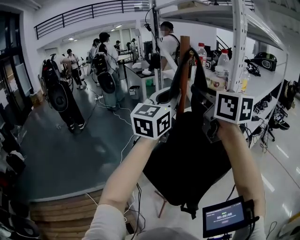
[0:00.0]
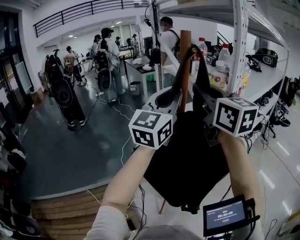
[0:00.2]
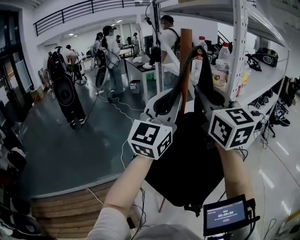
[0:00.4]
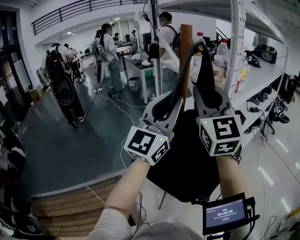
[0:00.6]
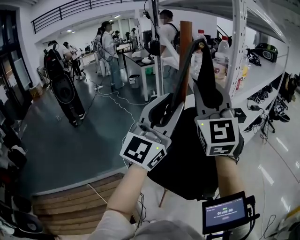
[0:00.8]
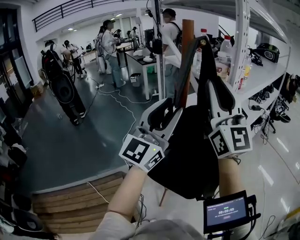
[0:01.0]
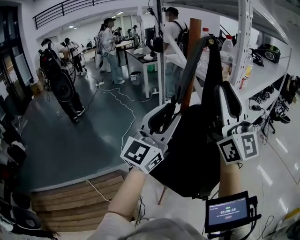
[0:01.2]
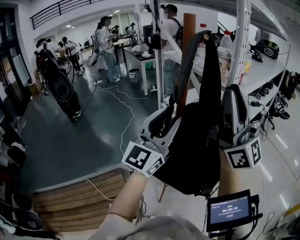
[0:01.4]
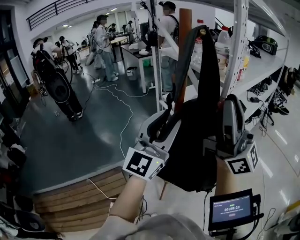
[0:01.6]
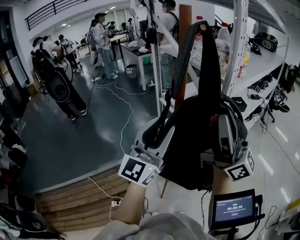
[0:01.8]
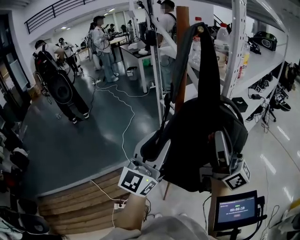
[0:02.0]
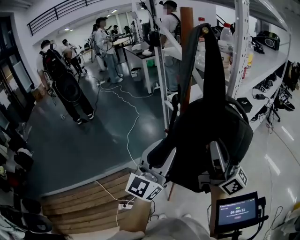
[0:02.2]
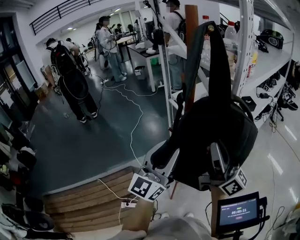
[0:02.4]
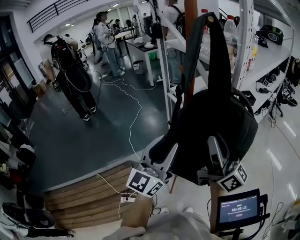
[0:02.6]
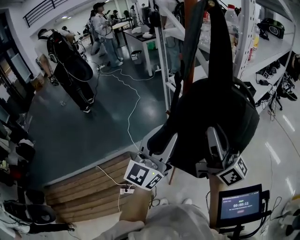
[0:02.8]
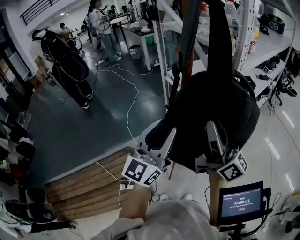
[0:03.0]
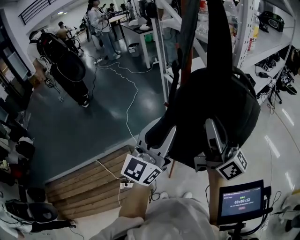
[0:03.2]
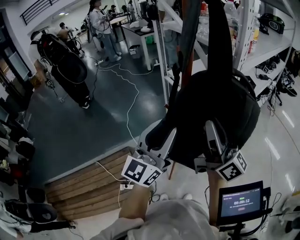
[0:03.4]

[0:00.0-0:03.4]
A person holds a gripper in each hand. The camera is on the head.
0.0 to 1.6 s: The right gripper shifts about 20 cm backward and to the right, and angles its fingers upward, by roughly 50 degrees; the left gripper shifts about 15 cm backward and downward, and opens its fingers.
1.6 to 3.4 s: The left gripper goes some 10 cm downward. The right gripper heads downward, covering roughly 15 cm, and changes its angle by approximately 30 degrees.

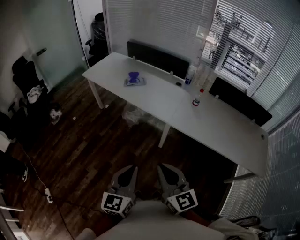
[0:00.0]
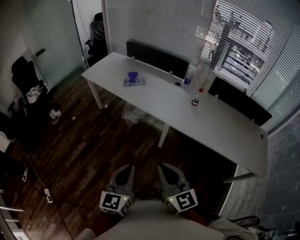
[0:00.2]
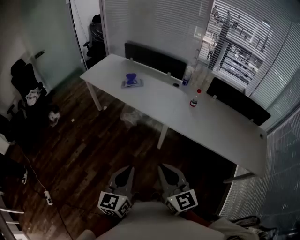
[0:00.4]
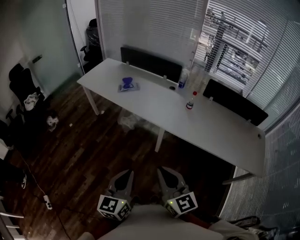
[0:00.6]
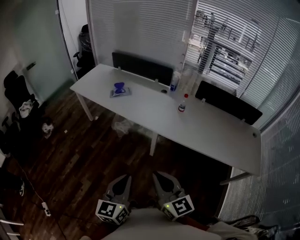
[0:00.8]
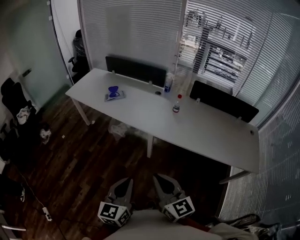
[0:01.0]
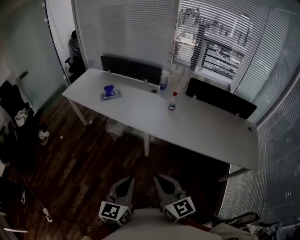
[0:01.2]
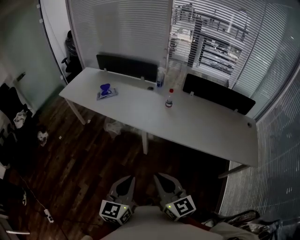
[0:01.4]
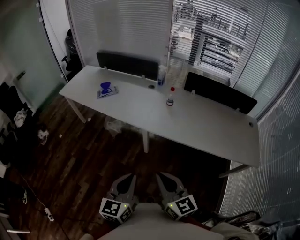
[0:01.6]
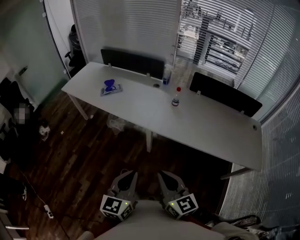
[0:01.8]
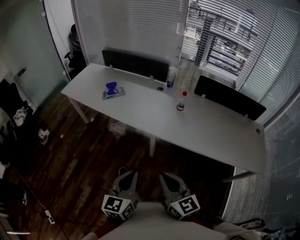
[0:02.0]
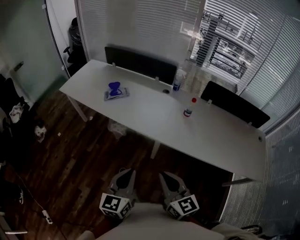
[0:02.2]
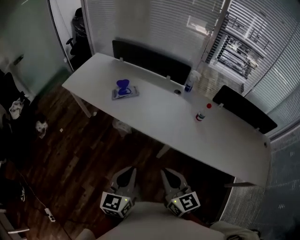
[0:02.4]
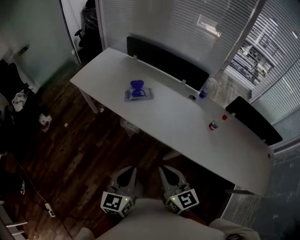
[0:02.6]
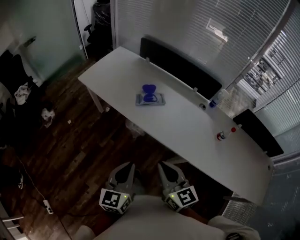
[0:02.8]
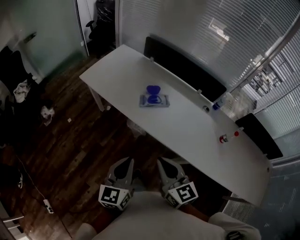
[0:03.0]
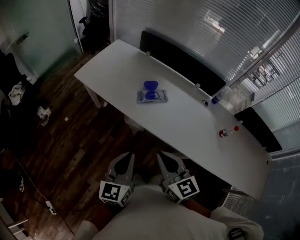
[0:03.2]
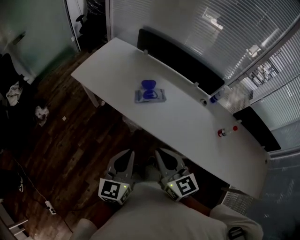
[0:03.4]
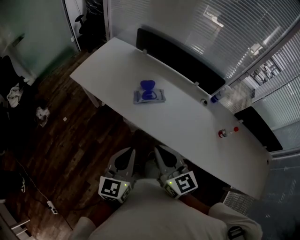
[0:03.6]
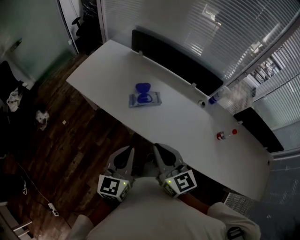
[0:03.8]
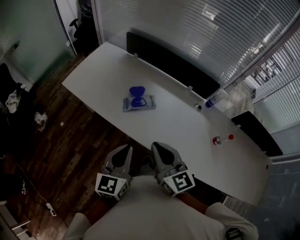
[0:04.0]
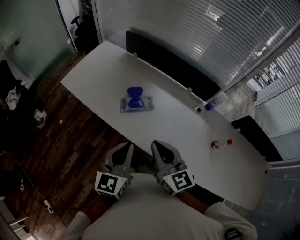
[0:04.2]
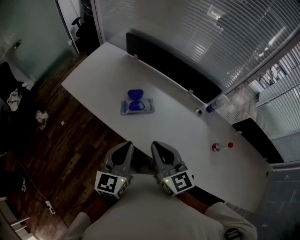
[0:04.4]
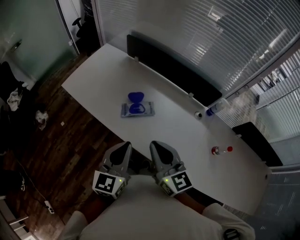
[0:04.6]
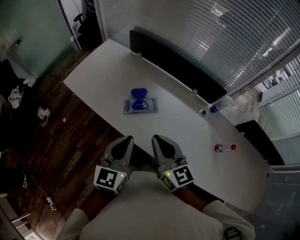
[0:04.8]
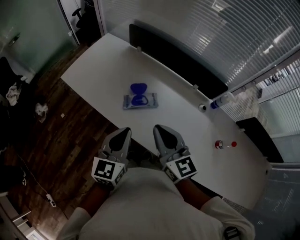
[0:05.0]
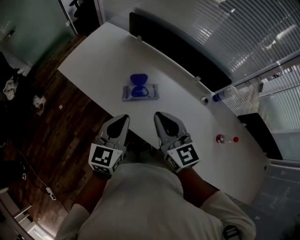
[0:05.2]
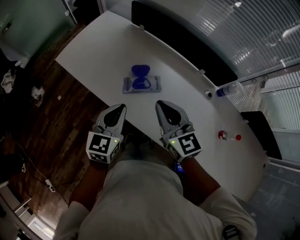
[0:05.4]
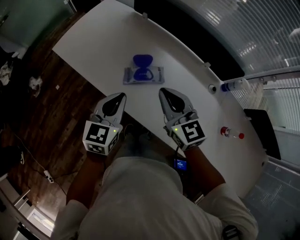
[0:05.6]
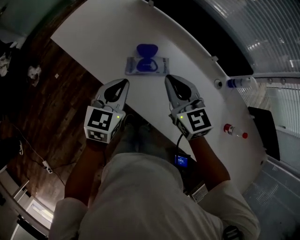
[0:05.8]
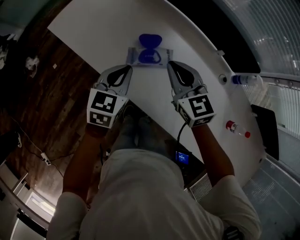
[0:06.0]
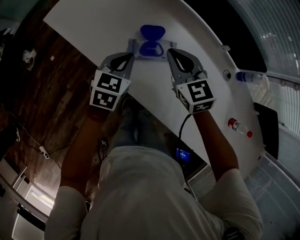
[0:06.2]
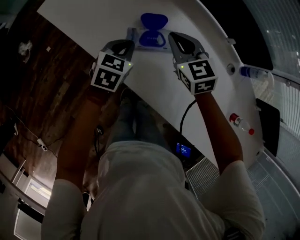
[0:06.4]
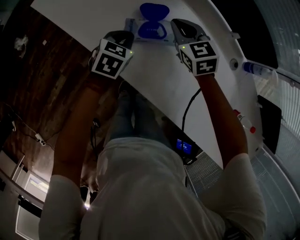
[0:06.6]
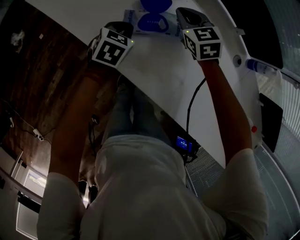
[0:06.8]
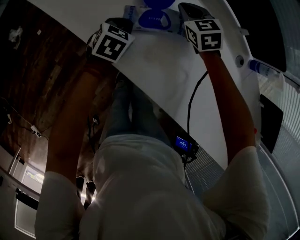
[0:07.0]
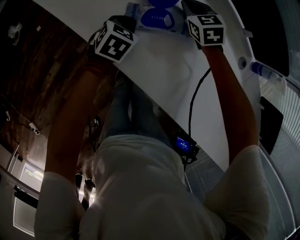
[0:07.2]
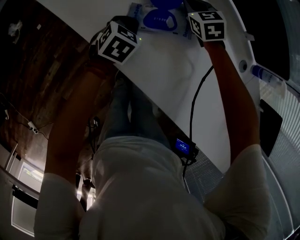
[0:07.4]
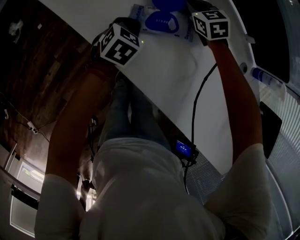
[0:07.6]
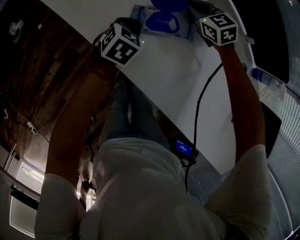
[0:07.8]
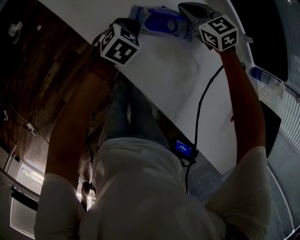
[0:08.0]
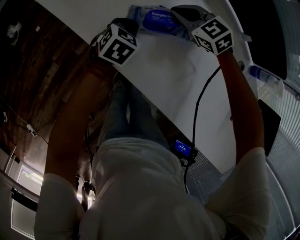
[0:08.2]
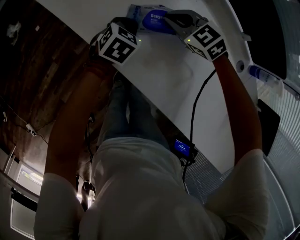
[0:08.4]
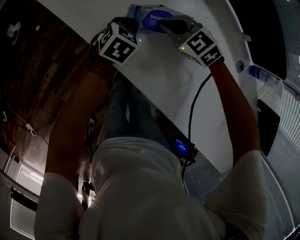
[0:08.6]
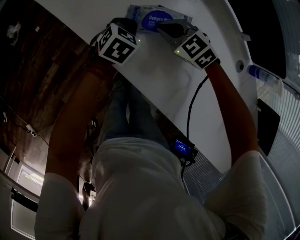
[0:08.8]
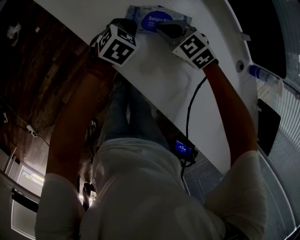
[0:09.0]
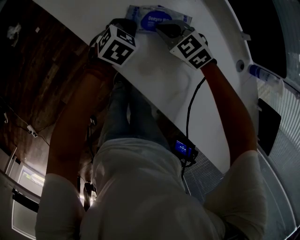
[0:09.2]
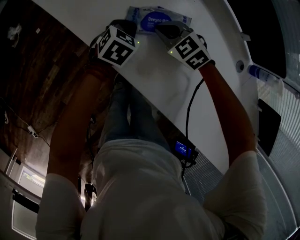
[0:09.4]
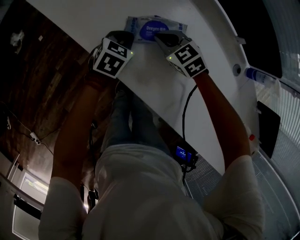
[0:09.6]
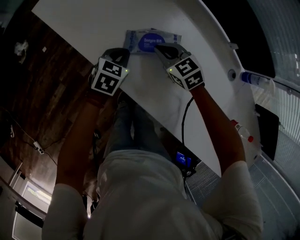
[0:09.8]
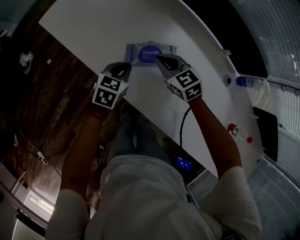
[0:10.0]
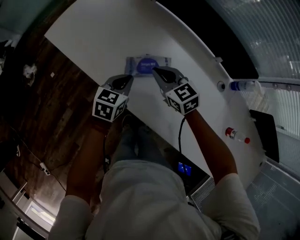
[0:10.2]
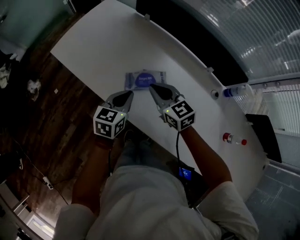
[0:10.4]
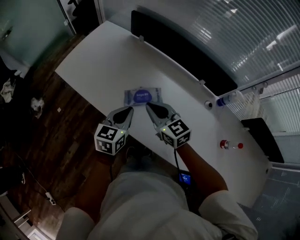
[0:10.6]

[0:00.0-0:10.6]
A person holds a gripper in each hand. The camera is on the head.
0.0 to 1.6 s: The grippers both shift to the right by about 15 cm.
1.6 to 3.0 s: The two grippers travel together, forward and to the left, approximately 50 cm.
3.0 to 4.6 s: The two grippers go roughly 20 cm forward and to the right.
4.6 to 6.0 s: The two grippers go about 25 cm forward and downward. The right gripper turns by about 20 degrees. Meanwhile the left gripper swivels approximately 20 degrees.
6.0 to 7.6 s: The right gripper shifts about 30 cm downward and forward, and rotates about 20 degrees, while the left gripper shifts about 20 cm downward, and swivels approximately 20 degrees.
7.6 to 9.0 s: The right gripper is displaced backward and to the left by approximately 15 cm, and rotates some 30 degrees.
9.0 to 10.6 s: Both grippers move upward, roughly 25 cm. The left gripper rotates some 30 degrees; the right gripper swivels approximately 40 degrees.

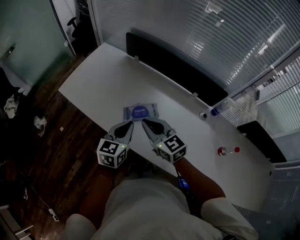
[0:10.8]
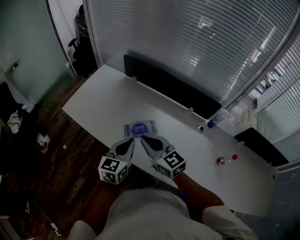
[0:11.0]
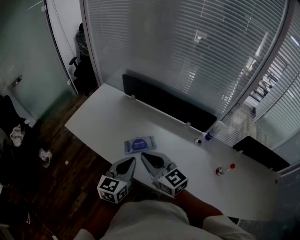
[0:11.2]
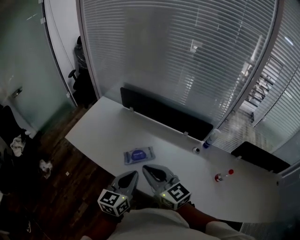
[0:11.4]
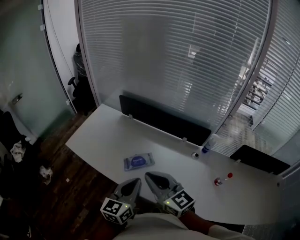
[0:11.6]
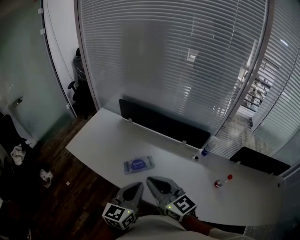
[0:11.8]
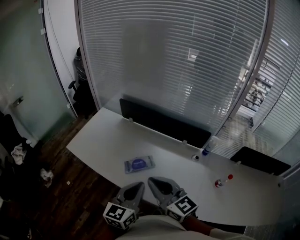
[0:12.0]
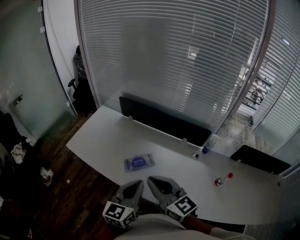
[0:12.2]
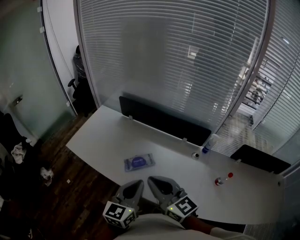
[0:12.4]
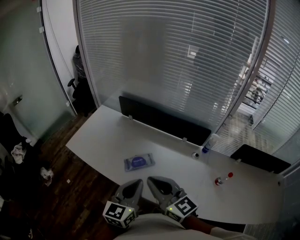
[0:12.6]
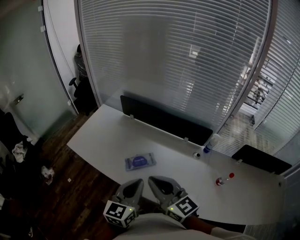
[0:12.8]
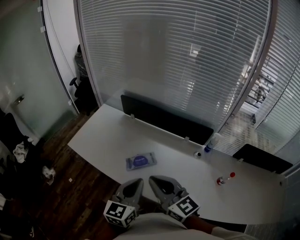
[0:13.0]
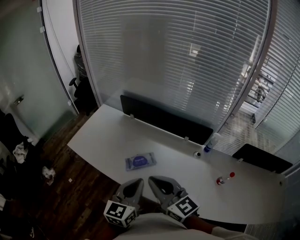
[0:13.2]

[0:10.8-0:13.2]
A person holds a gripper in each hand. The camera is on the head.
10.8 to 12.0 s: The right gripper moves upward and backward, some 20 cm. Meanwhile the left gripper goes some 15 cm upward, backward and to the right.
12.0 to 13.2 s: Both grippers stay about where they are.

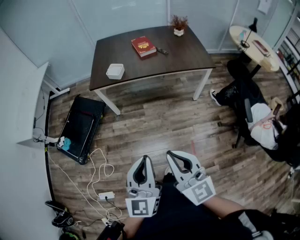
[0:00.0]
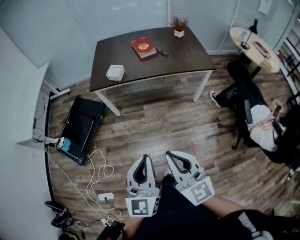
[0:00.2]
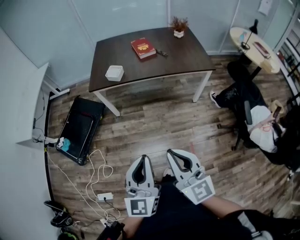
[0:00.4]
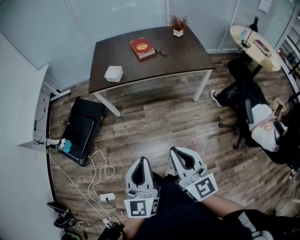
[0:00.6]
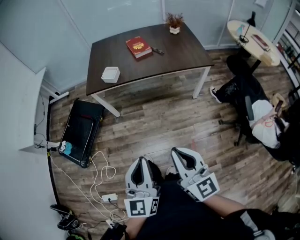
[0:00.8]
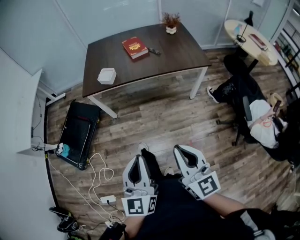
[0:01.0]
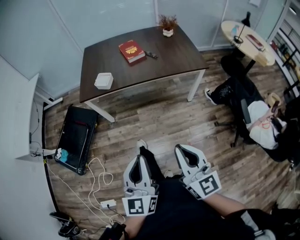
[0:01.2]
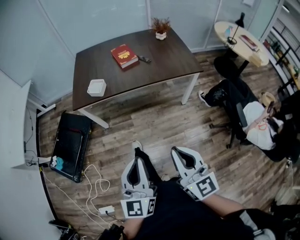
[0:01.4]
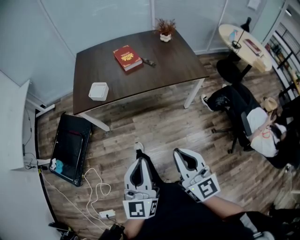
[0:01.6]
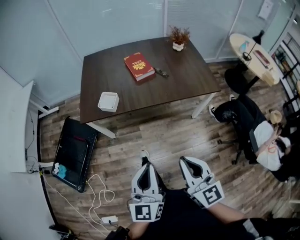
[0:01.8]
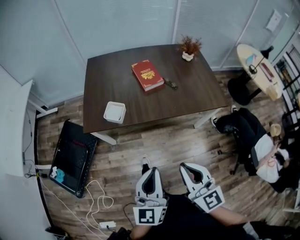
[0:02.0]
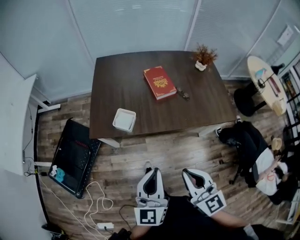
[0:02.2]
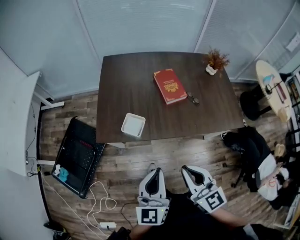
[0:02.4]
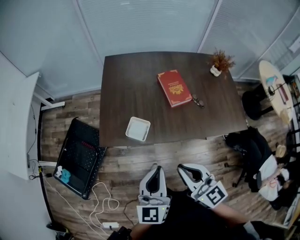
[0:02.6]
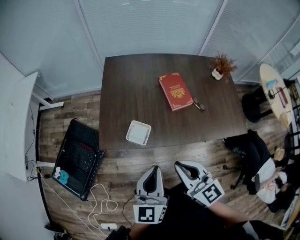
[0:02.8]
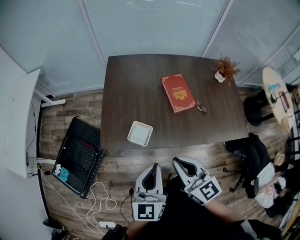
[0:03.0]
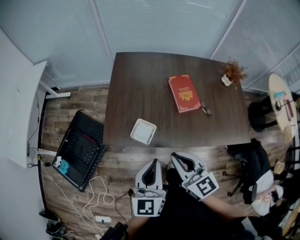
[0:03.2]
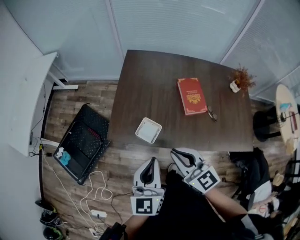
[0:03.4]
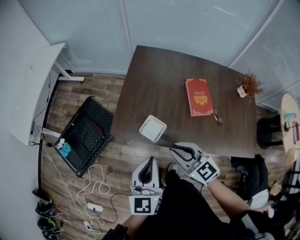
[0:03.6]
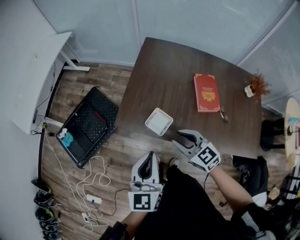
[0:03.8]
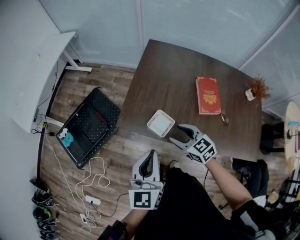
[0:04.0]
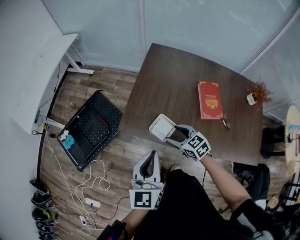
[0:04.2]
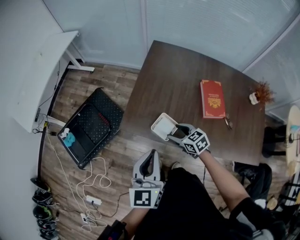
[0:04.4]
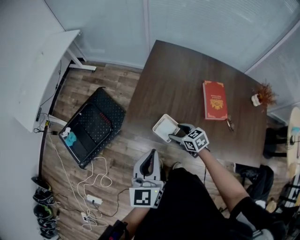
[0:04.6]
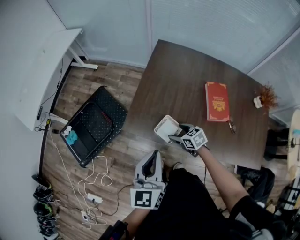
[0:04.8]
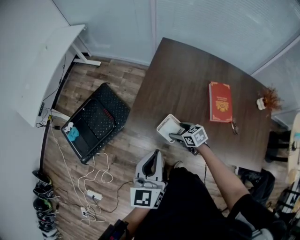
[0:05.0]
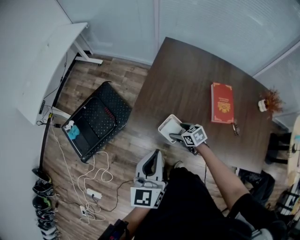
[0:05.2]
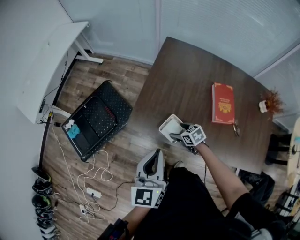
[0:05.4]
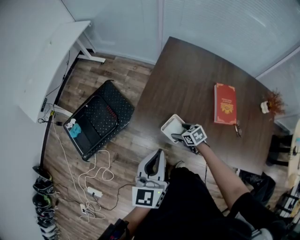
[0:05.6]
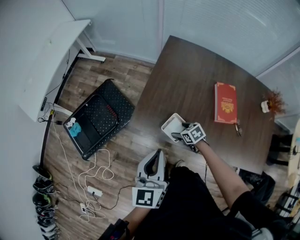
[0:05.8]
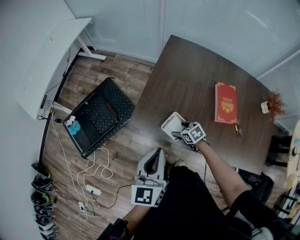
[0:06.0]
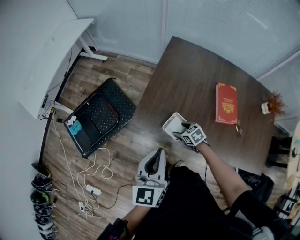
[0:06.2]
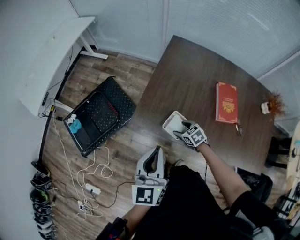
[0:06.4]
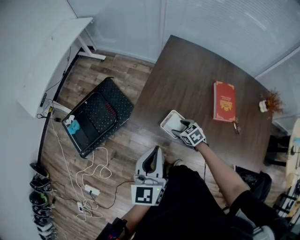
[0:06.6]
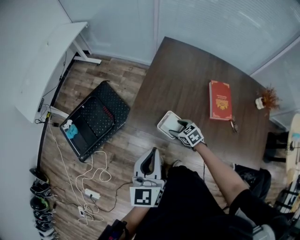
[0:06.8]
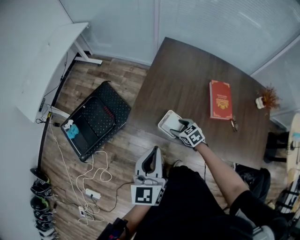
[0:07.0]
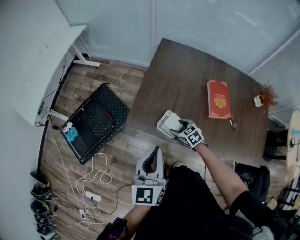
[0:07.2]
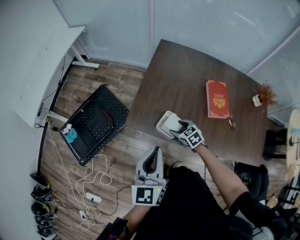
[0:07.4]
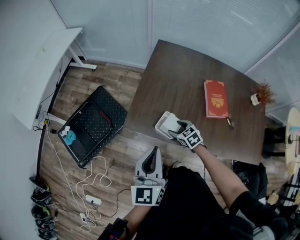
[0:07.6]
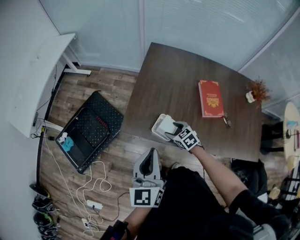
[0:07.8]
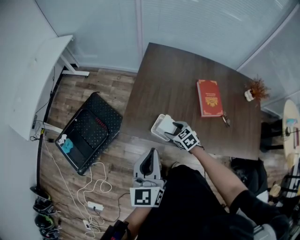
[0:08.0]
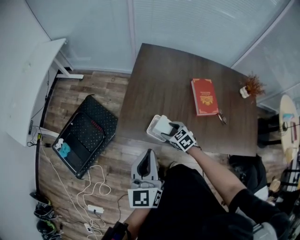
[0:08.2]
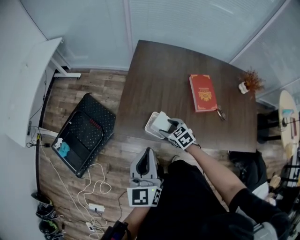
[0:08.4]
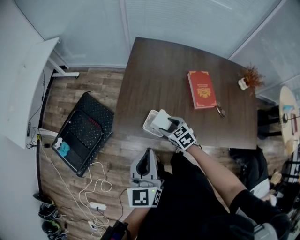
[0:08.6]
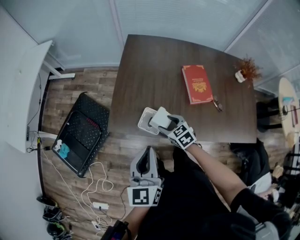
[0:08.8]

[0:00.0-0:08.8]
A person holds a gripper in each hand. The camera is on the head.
0.0 to 1.4 s: The right gripper is displaced forward and to the right by about 15 cm, while the left gripper is displaced forward by some 10 cm.
1.4 to 3.0 s: The pair of grippers is taken forward, about 50 cm. The right gripper swivels roughly 20 degrees.
3.0 to 4.4 s: The left gripper ends up roughly 10 cm from where it was, and changes its angle by roughly 20 degrees, while the right gripper heads downward, covering about 25 cm, angles its fingers downward, by some 30 degrees, and opens.
4.4 to 5.8 s: The right gripper goes approximately 10 cm downward.
5.8 to 7.4 s: The right gripper is displaced upward by roughly 5 cm.
7.4 to 8.8 s: The right gripper ends up about 5 cm from where it was.
